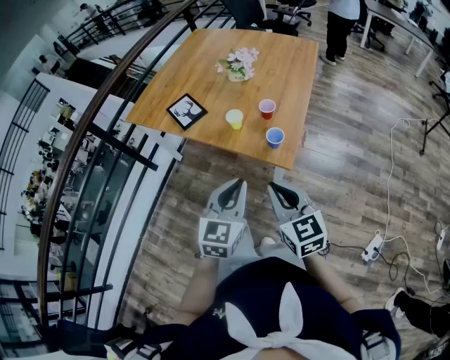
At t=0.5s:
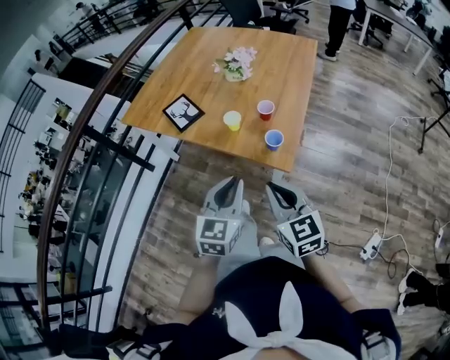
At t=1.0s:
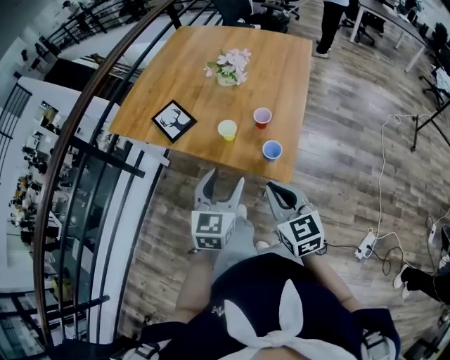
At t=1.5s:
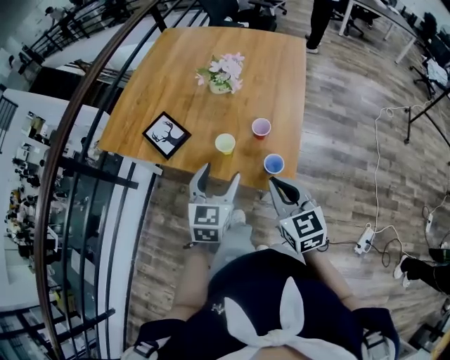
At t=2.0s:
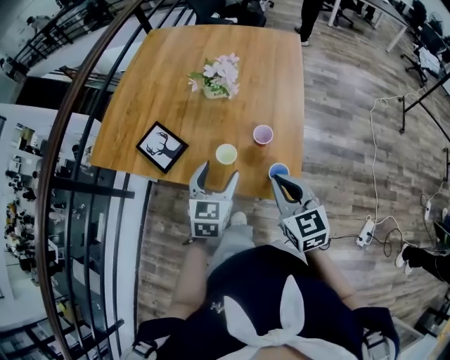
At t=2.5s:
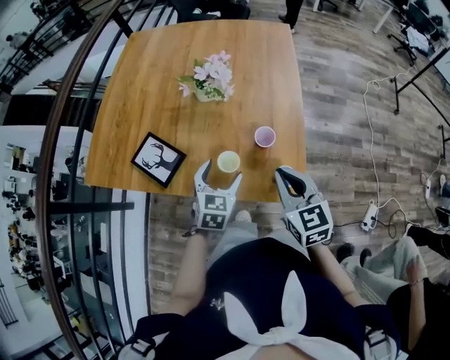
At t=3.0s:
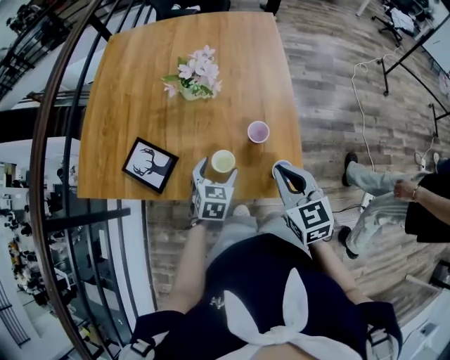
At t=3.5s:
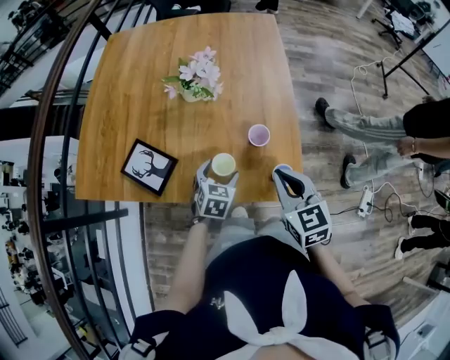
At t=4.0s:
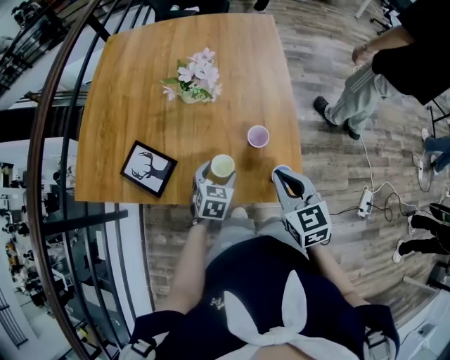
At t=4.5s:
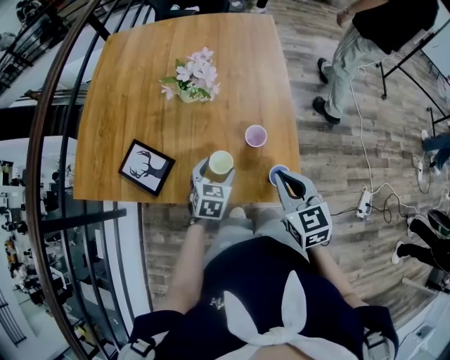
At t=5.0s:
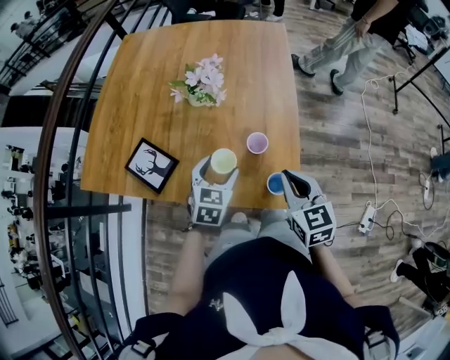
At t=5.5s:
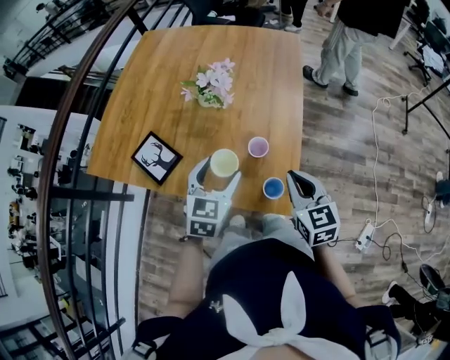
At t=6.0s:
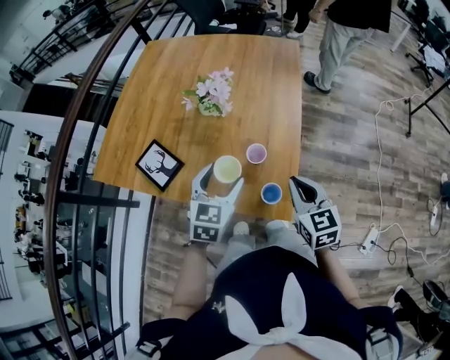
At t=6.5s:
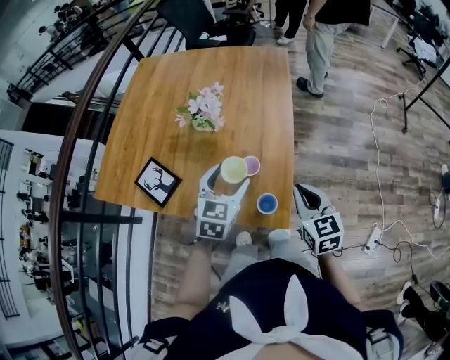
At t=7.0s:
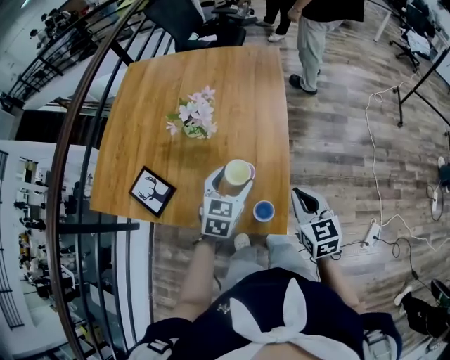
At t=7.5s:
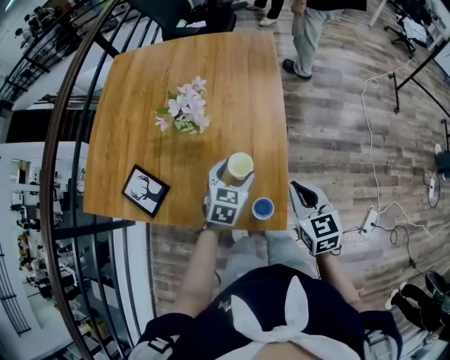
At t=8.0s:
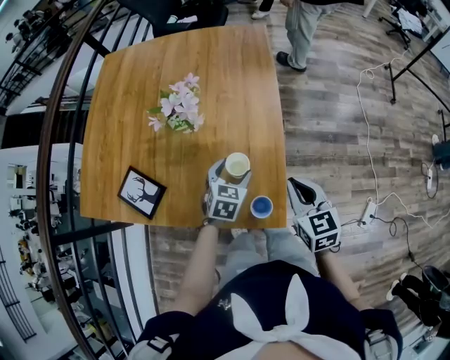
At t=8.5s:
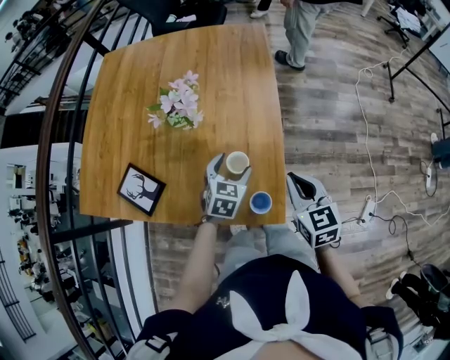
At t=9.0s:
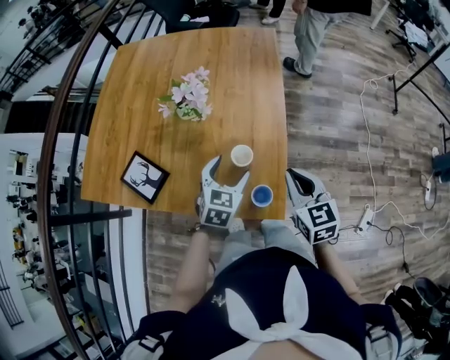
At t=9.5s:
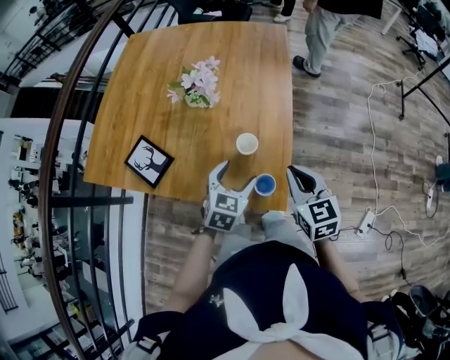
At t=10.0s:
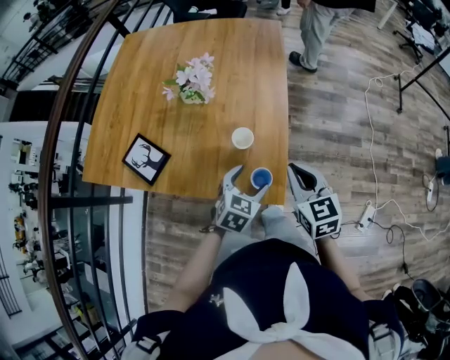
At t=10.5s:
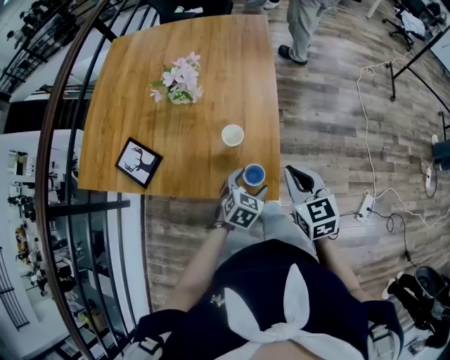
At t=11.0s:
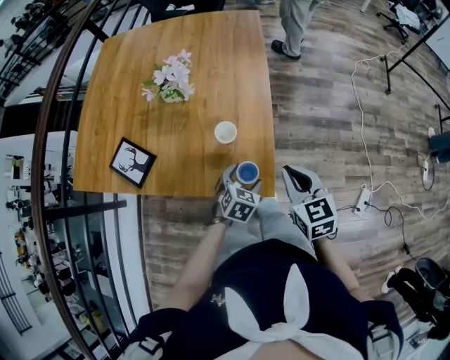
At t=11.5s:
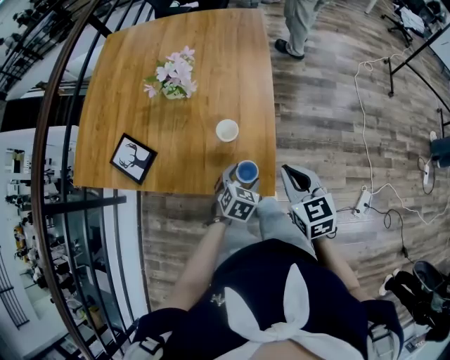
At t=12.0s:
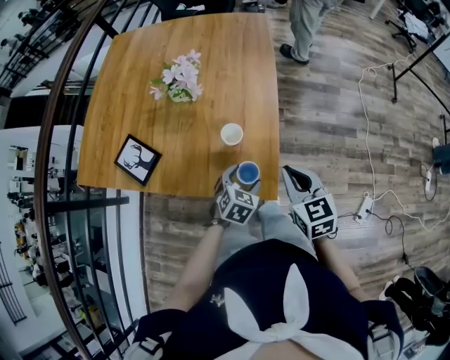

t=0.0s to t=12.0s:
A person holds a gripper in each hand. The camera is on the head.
t=0.0s to t=2.0s: The two grippers go roughly 25 cm forward. The left gripper opens up.
t=2.0s to t=4.0s: The left gripper heads downward and forward, covering some 15 cm, and swivels about 20 degrees; the right gripper is displaced forward by approximately 5 cm.
t=4.0s to t=6.0s: The right gripper goes roughly 10 cm to the right. The left gripper travels upward by about 20 cm.
t=6.0s to t=8.0s: The right gripper heads forward, covering about 5 cm. The left gripper travels downward, forward and to the right by roughly 20 cm.
t=8.0s to t=10.0s: The left gripper travels backward by approximately 15 cm. The right gripper travels backward by approximately 5 cm.
t=10.0s to t=12.0s: The left gripper goes approximately 5 cm downward.

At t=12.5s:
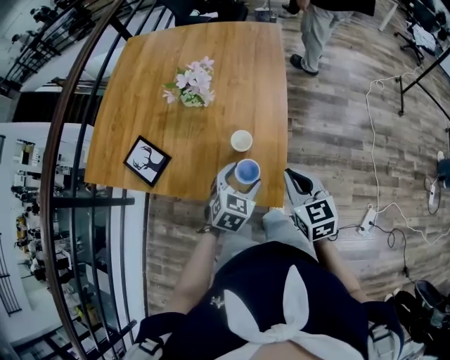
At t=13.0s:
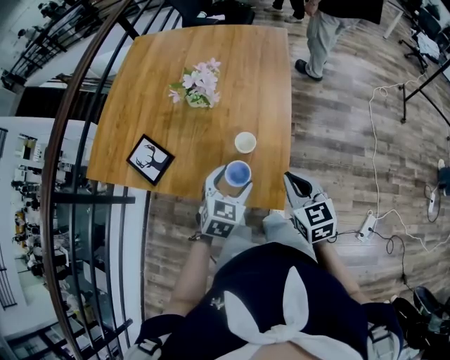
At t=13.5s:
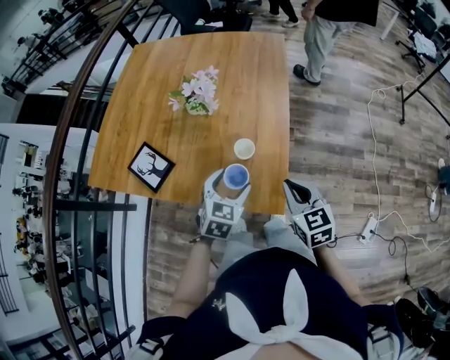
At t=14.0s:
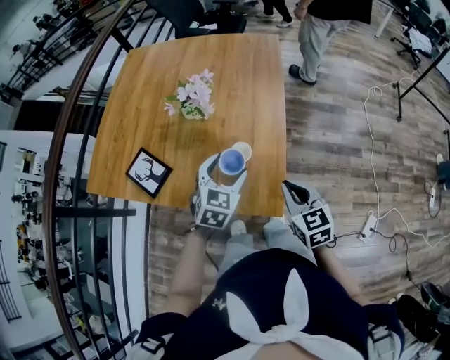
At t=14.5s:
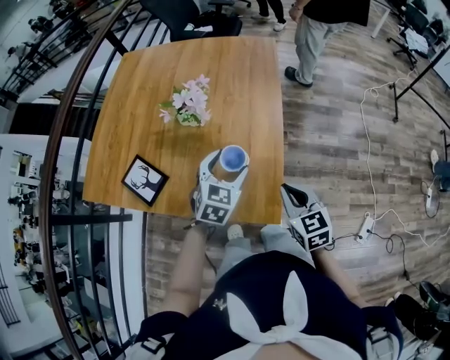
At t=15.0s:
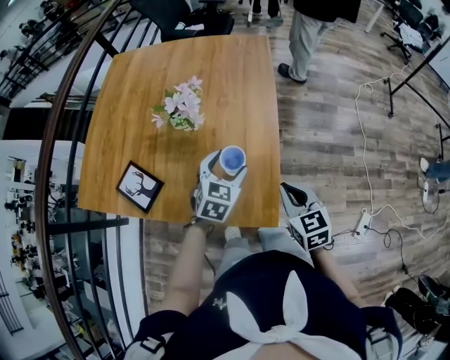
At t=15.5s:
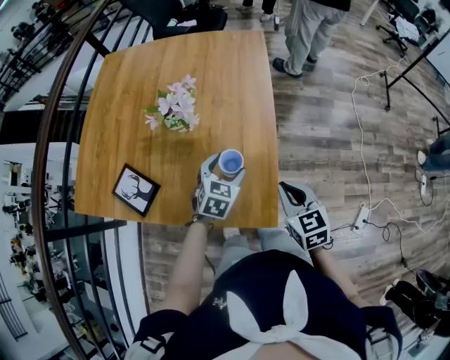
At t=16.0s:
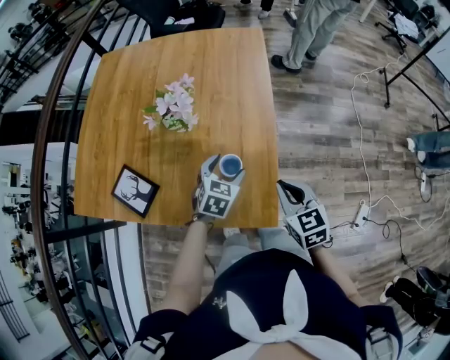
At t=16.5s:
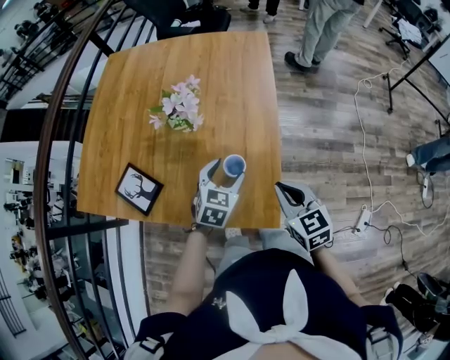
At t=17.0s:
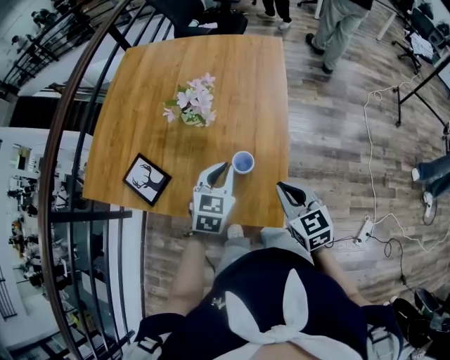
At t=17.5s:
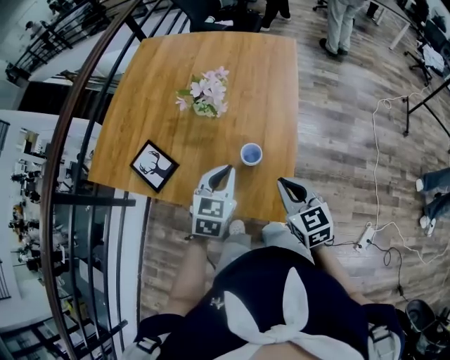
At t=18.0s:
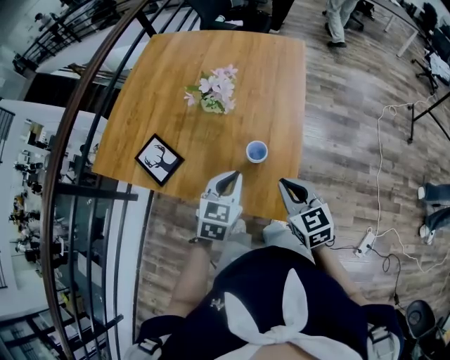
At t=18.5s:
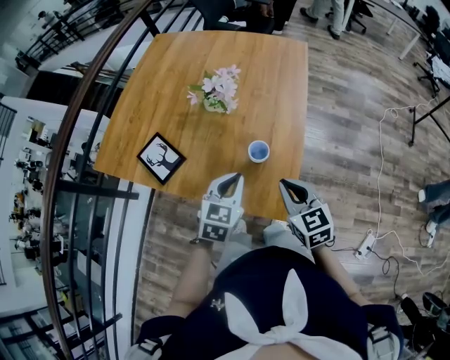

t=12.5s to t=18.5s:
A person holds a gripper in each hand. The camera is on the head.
t=12.5s to t=14.5s: The left gripper shifts some 10 cm forward and upward.
t=14.5s to t=16.5s: The left gripper goes some 5 cm downward.
t=16.5s to t=18.5s: The left gripper moves backward, upward and to the left, roughly 15 cm, and closes its fingers; the right gripper moves to the left, approximately 5 cm.

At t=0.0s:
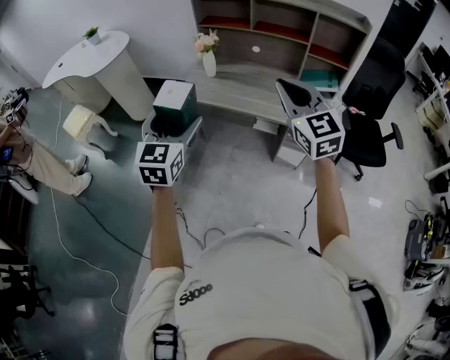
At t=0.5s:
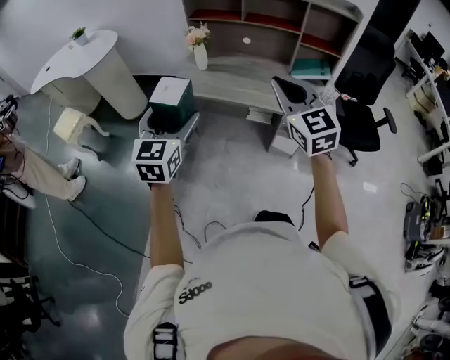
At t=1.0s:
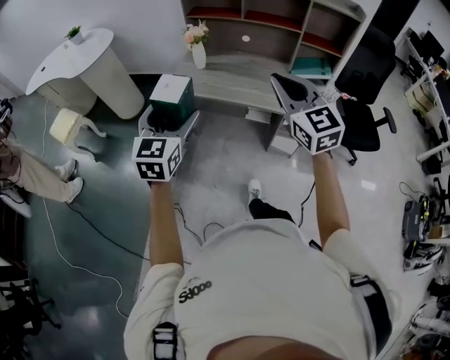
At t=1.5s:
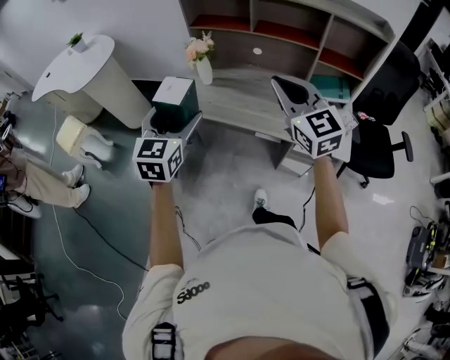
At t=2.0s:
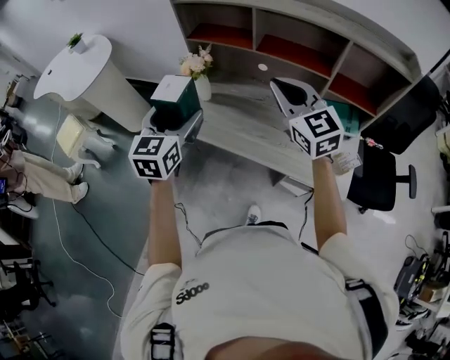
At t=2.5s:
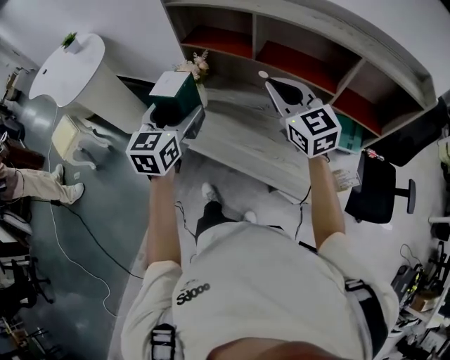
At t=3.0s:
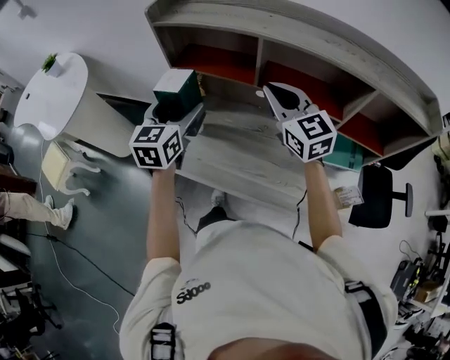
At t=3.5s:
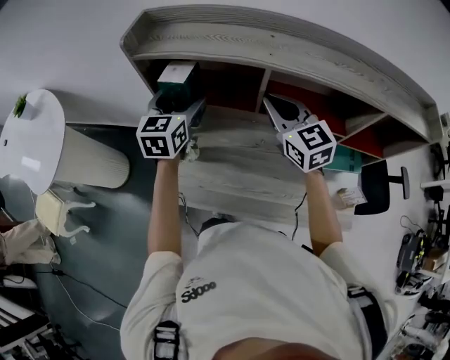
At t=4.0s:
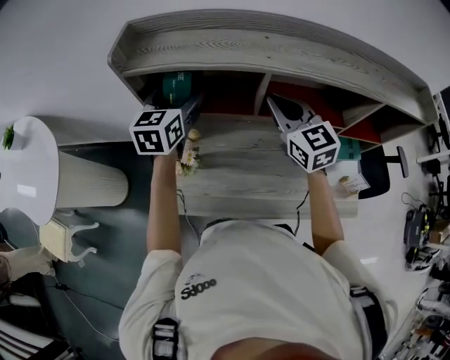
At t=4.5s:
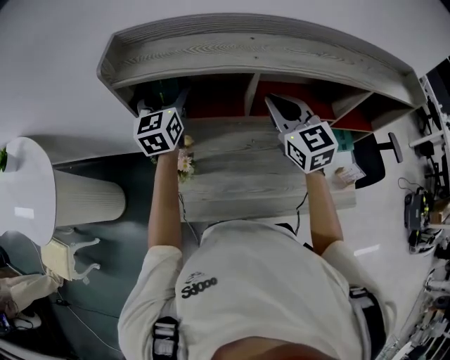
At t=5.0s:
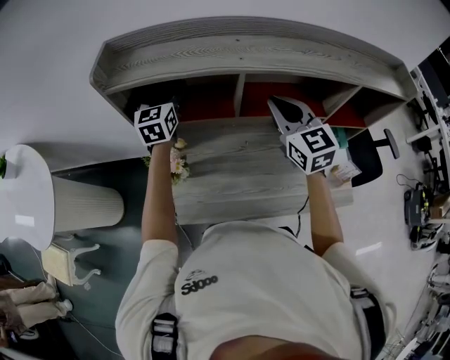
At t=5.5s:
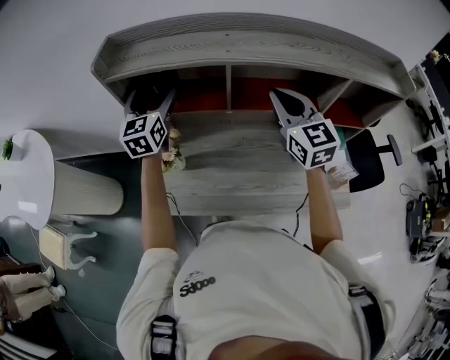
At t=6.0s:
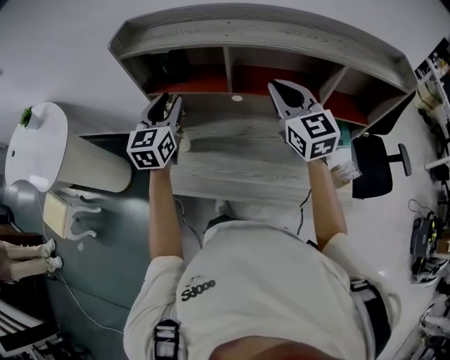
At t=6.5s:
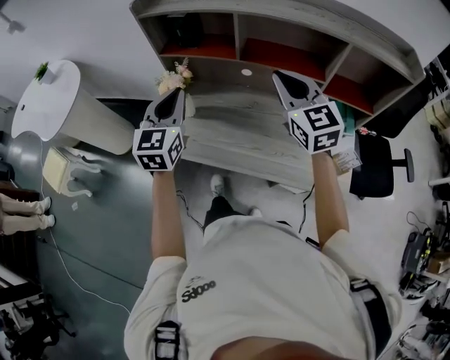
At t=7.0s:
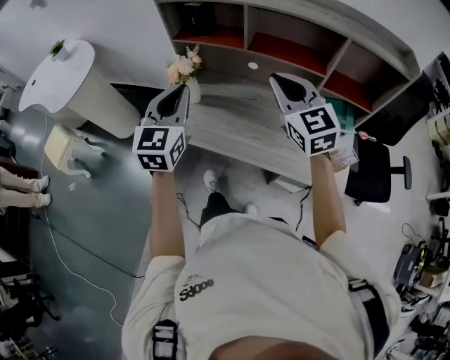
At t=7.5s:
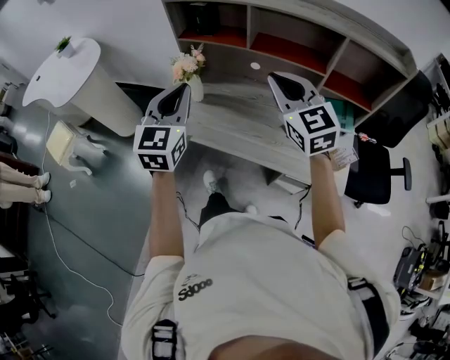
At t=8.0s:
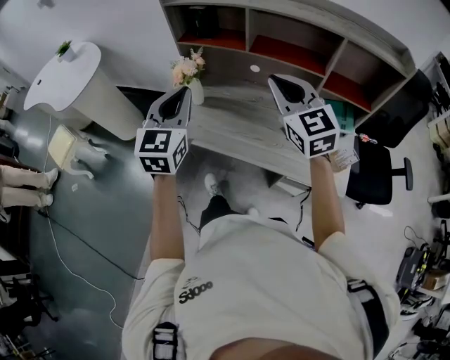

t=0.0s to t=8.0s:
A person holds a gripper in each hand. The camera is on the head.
t=0.0s to t=2.0s: The grippers both shift forward by approximately 35 cm.
t=2.0s to t=4.0s: The two grippers go some 40 cm forward. The right gripper changes its angle by about 20 degrees; the left gripper turns by approximately 20 degrees.
t=4.0s to t=6.0s: The right gripper moves backward and to the right, approximately 15 cm; the left gripper shifts roughly 15 cm backward, and closes up.
t=6.0s to t=8.0s: The grippers both shift backward by about 25 cm. The left gripper closes up.

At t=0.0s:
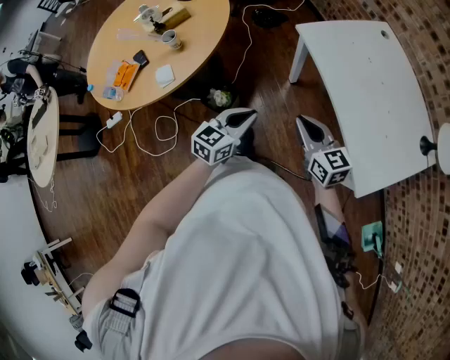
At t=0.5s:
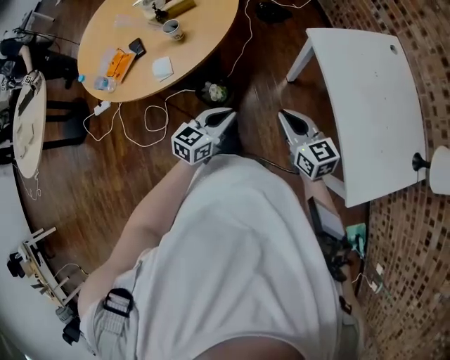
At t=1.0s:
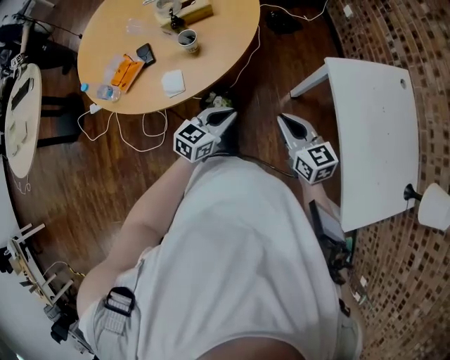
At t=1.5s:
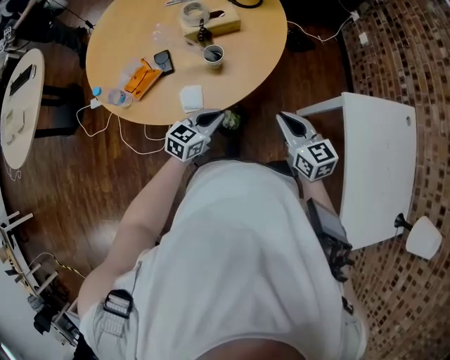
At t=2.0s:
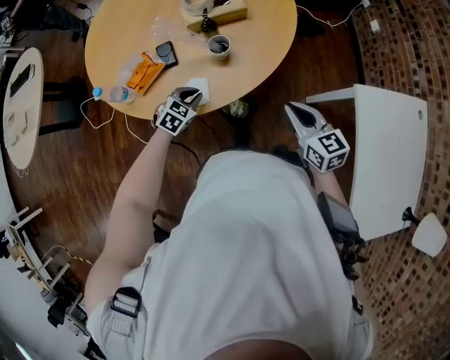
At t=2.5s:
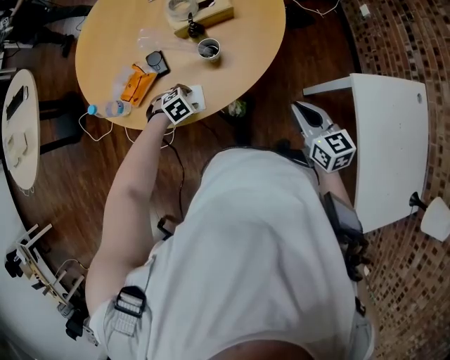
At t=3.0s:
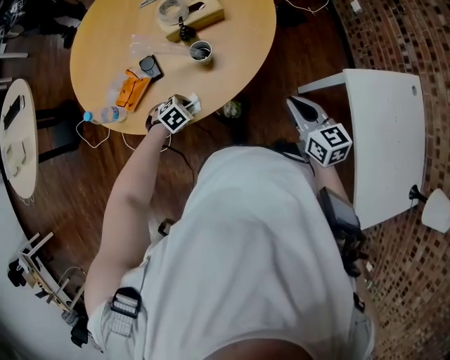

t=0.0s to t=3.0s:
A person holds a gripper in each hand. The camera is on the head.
t=0.0s to t=1.5s: The two grippers go about 35 cm to the left and forward.
t=1.5s to t=3.0s: The left gripper shifts about 15 cm downward, angles its fingers downward, by some 50 degrees, and opens, then closes once more.
